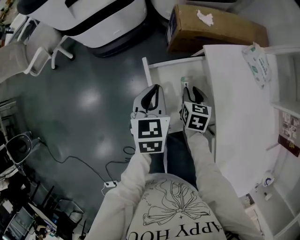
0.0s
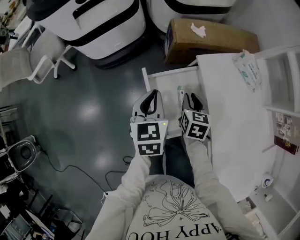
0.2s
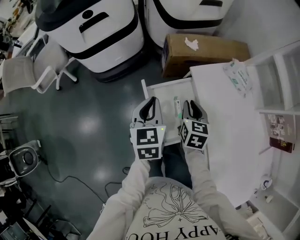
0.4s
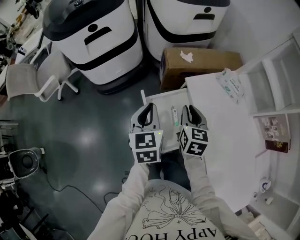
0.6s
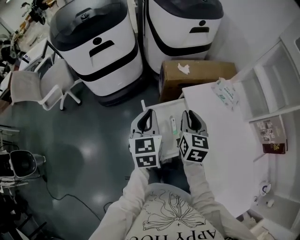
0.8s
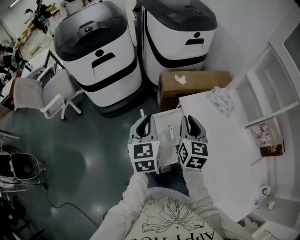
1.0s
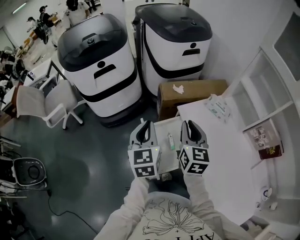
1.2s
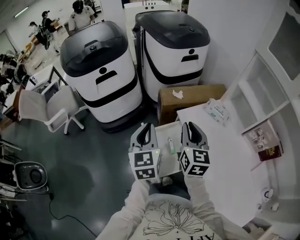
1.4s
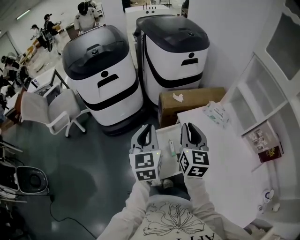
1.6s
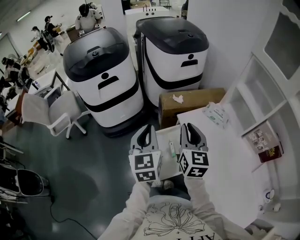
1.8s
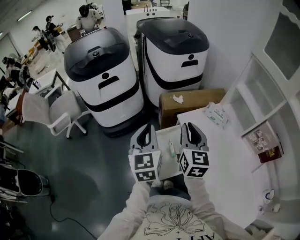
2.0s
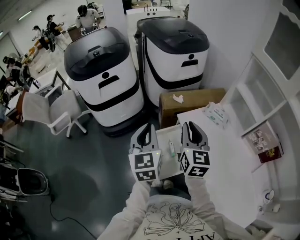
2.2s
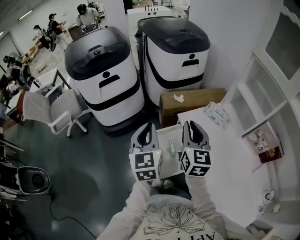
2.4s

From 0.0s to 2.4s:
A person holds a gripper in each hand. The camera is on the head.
From 0.0s to 1.2s: The left gripper moves upward, some 20 cm, and changes its angle by approximately 20 degrees; the right gripper heads upward, covering approximately 35 cm, and tips its fingers upward by approximately 40 degrees.
From 1.2s to 2.4s: The two grippers go approximately 5 cm upward.

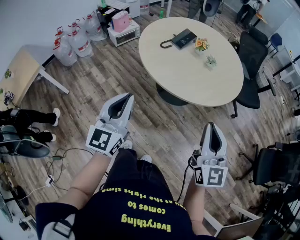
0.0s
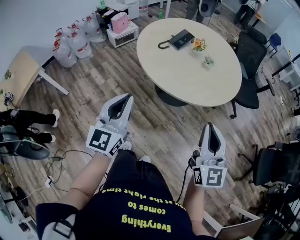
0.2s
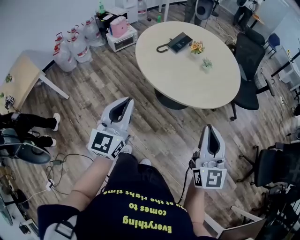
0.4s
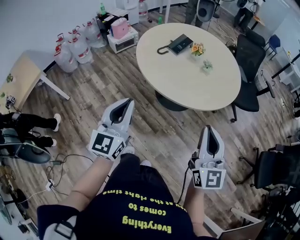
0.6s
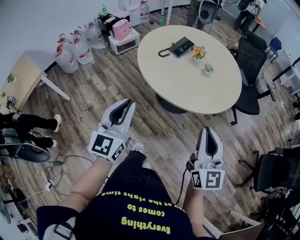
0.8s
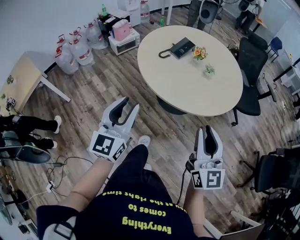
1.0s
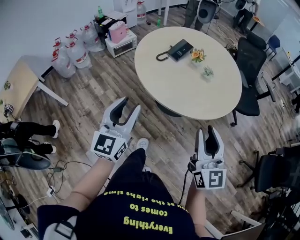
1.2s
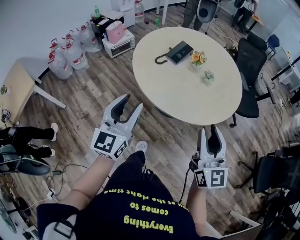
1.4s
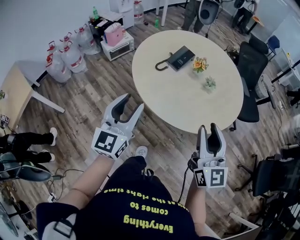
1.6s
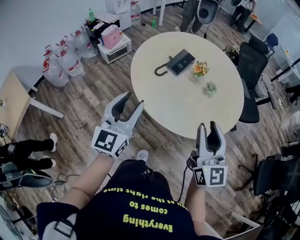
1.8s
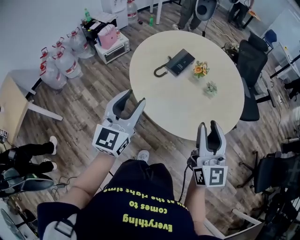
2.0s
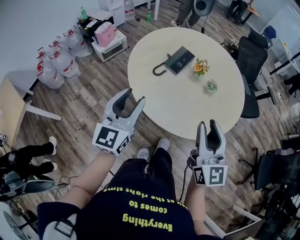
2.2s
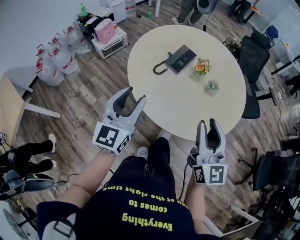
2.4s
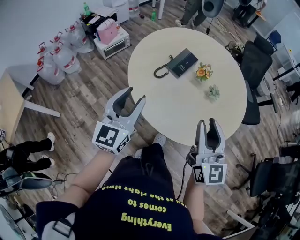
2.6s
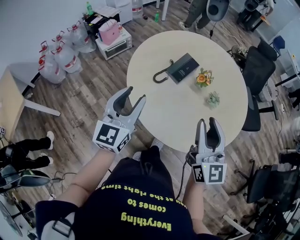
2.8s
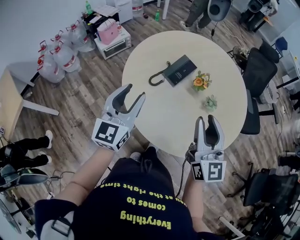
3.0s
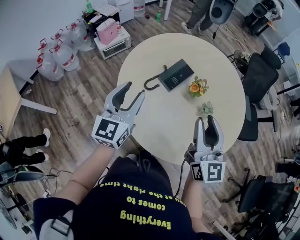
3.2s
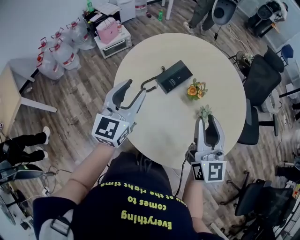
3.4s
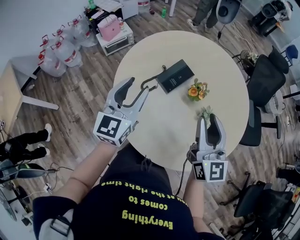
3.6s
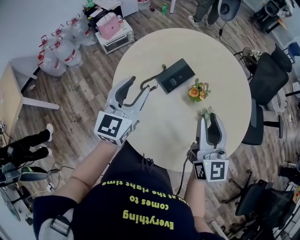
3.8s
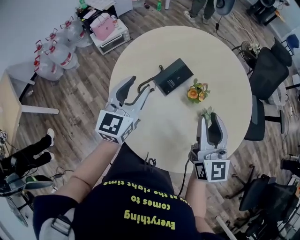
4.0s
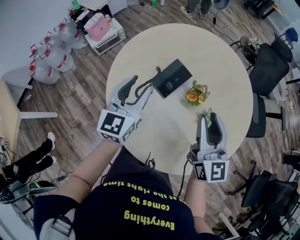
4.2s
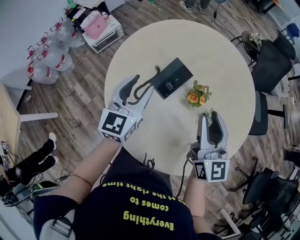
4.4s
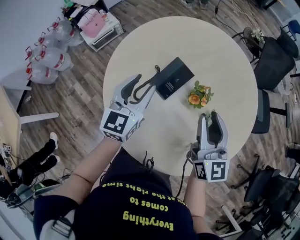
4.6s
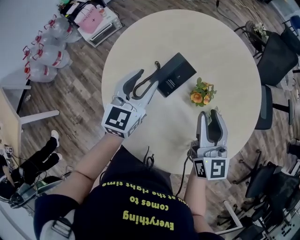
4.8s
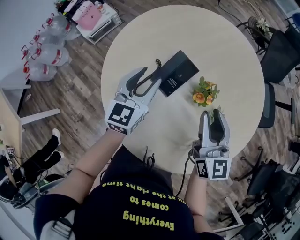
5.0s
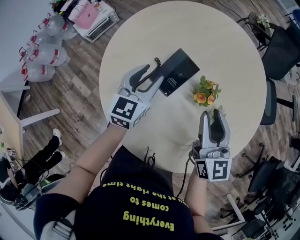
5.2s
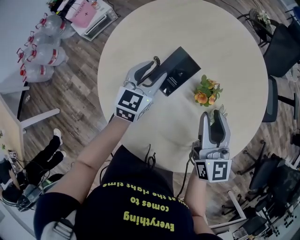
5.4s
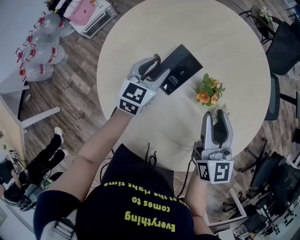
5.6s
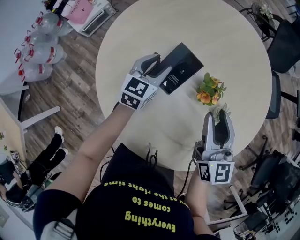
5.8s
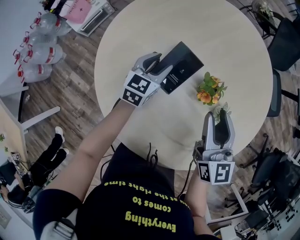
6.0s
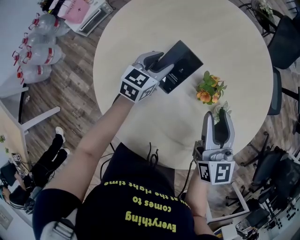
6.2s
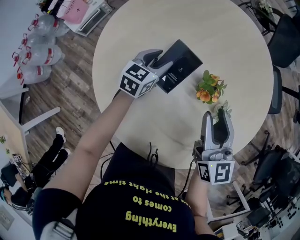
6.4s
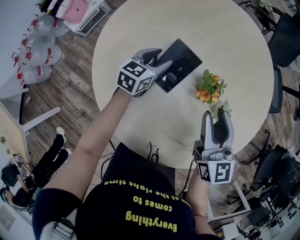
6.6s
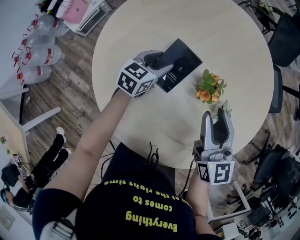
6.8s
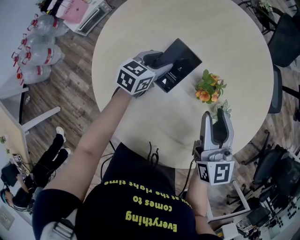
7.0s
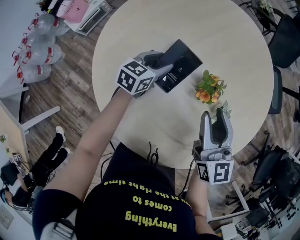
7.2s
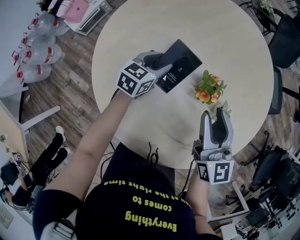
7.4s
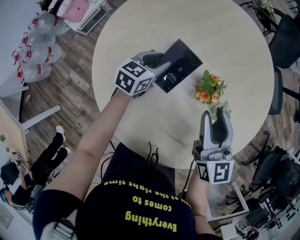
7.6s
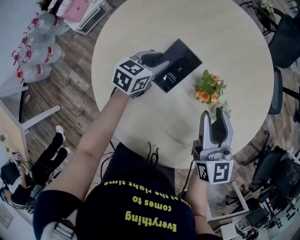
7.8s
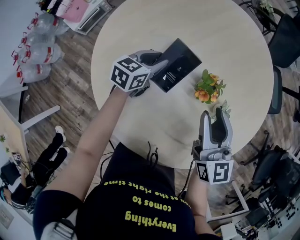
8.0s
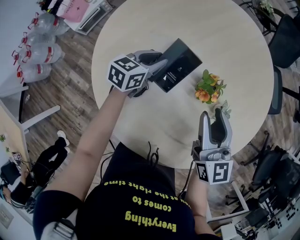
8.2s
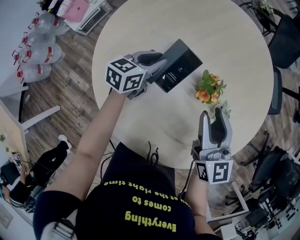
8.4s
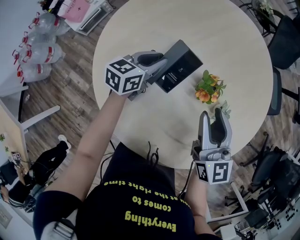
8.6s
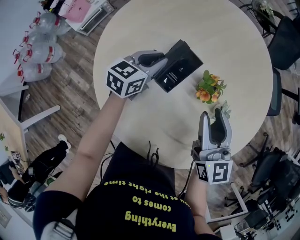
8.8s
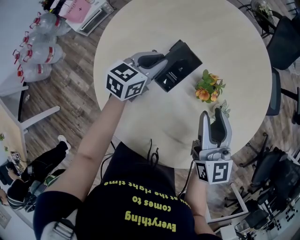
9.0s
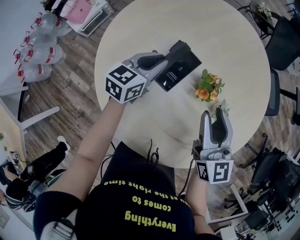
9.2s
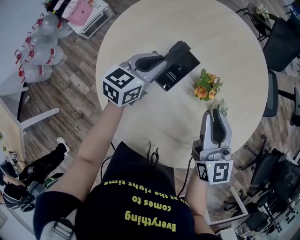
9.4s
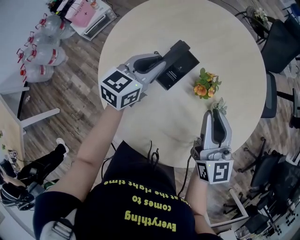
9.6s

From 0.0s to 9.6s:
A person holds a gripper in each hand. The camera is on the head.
From 0.0s to 1.6s: Both grippers move forward, about 20 cm. The left gripper opens its fingers. The right gripper opens.
From 1.6s to 3.2s: The two grippers go about 25 cm forward.
From 3.2s to 4.8s: Both grippers travel together forward and downward, roughly 20 cm.
From 4.8s to 6.4s: The right gripper changes place by approximately 5 cm. Meanwhile the left gripper moves downward and forward, roughly 20 cm, and changes its angle by roughly 30 degrees.
From 6.4s to 8.0s: The grippers move only a little.
From 8.0s to 9.6s: The left gripper heads upward, covering roughly 15 cm. Meanwhile the right gripper shifts by about 5 cm, and closes.

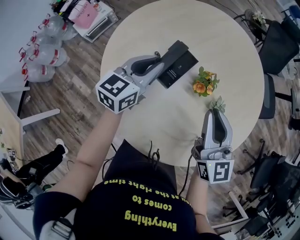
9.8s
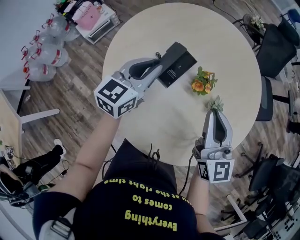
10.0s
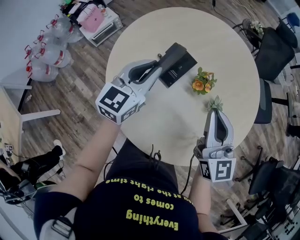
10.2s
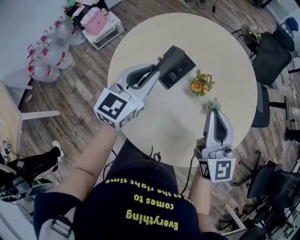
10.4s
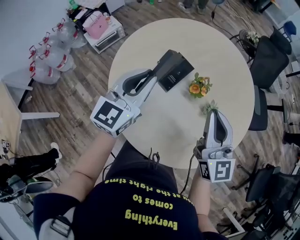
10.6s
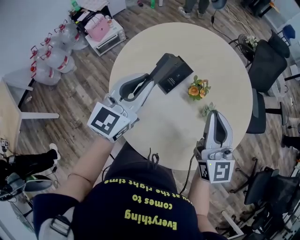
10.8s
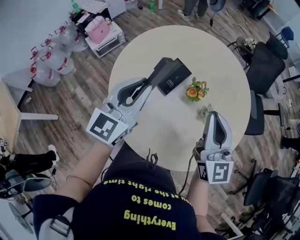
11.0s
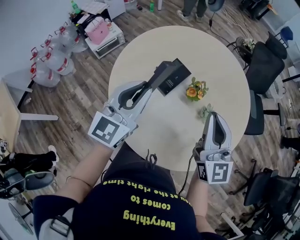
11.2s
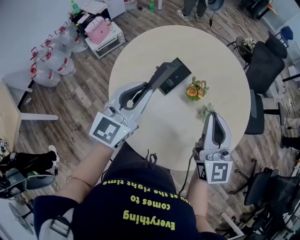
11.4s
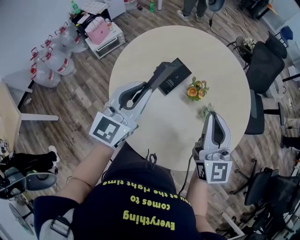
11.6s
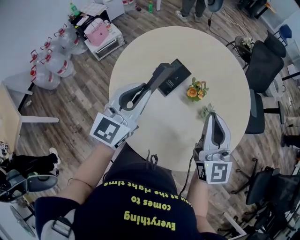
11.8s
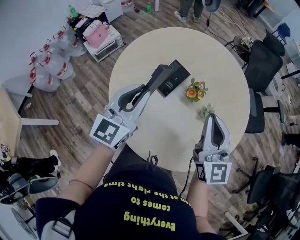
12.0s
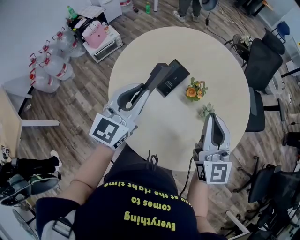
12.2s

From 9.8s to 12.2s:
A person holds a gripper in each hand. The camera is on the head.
From 9.8s to 11.0s: The right gripper is displaced upward and backward by about 10 cm; the left gripper heads upward and backward, covering approximately 20 cm, and changes its angle by about 30 degrees.
From 11.0s to 12.2s: The grippers make only small movements.

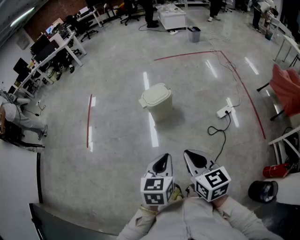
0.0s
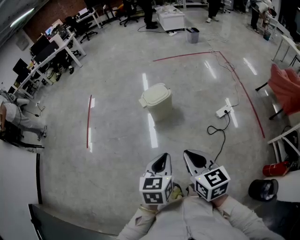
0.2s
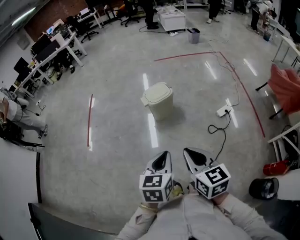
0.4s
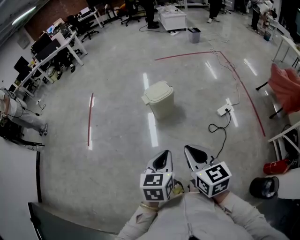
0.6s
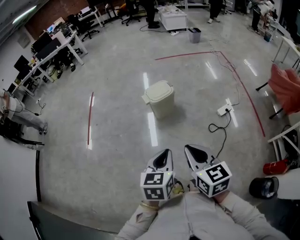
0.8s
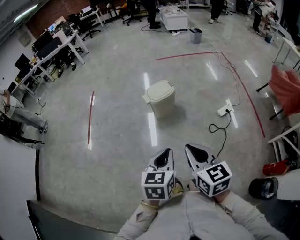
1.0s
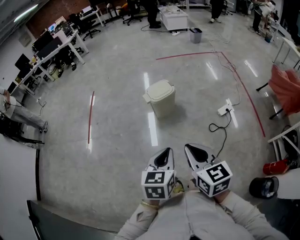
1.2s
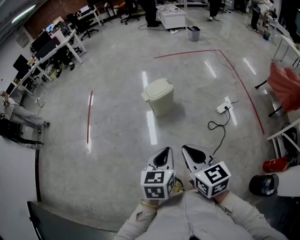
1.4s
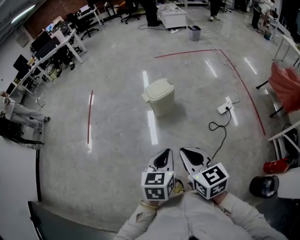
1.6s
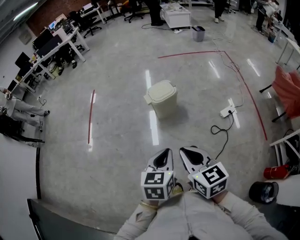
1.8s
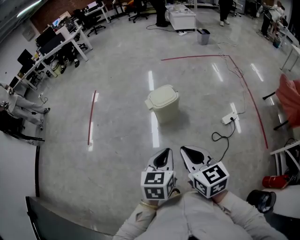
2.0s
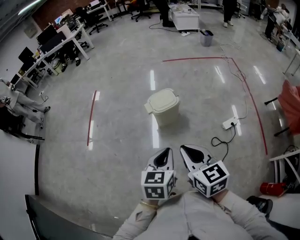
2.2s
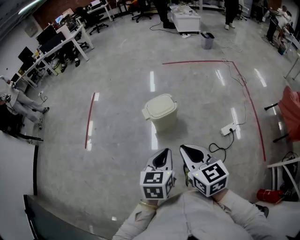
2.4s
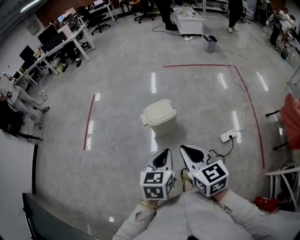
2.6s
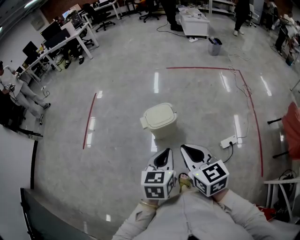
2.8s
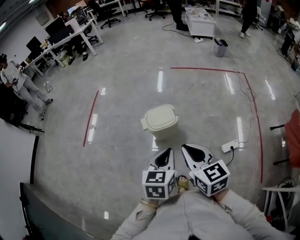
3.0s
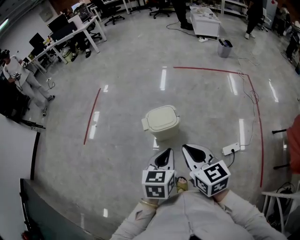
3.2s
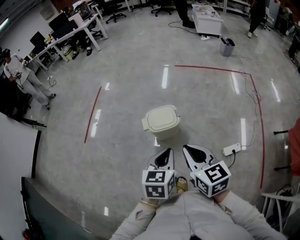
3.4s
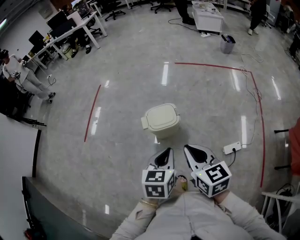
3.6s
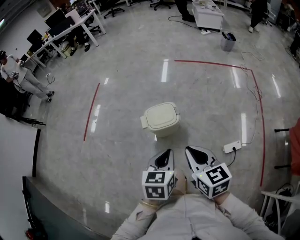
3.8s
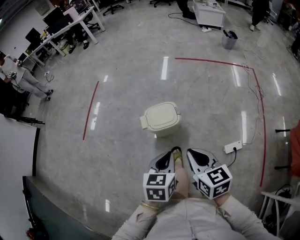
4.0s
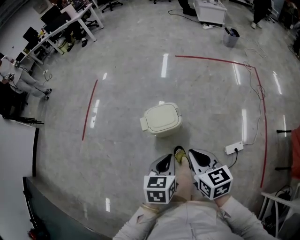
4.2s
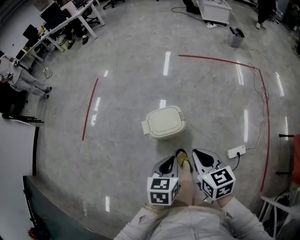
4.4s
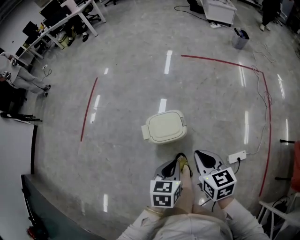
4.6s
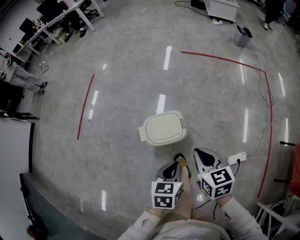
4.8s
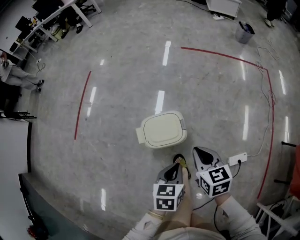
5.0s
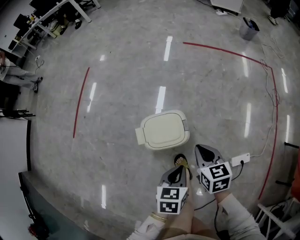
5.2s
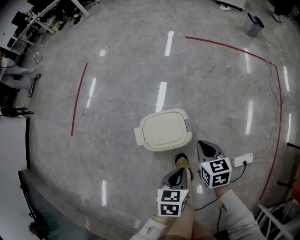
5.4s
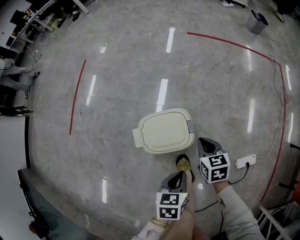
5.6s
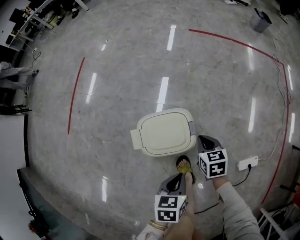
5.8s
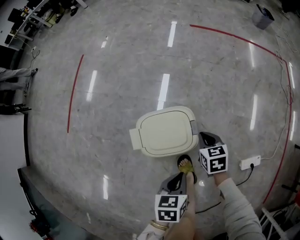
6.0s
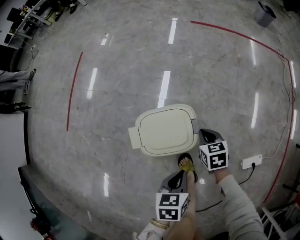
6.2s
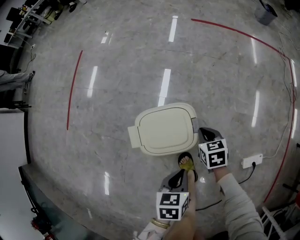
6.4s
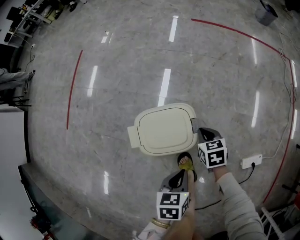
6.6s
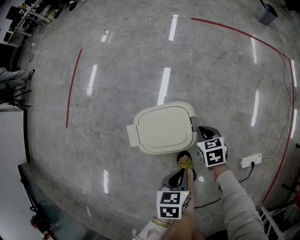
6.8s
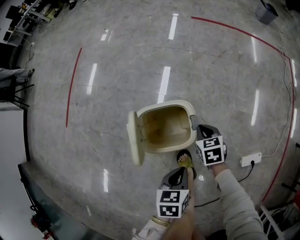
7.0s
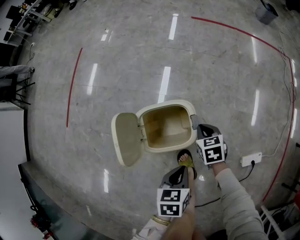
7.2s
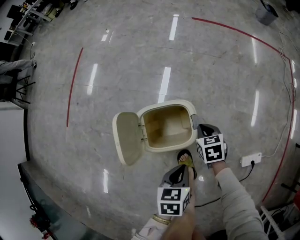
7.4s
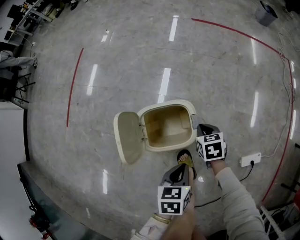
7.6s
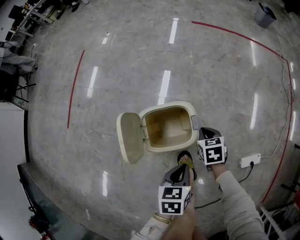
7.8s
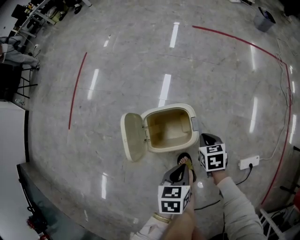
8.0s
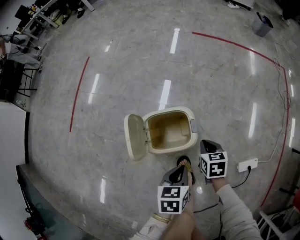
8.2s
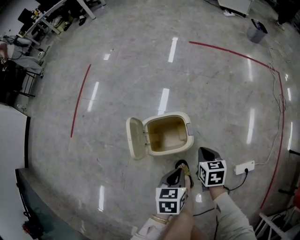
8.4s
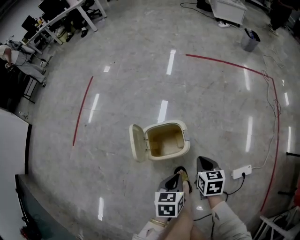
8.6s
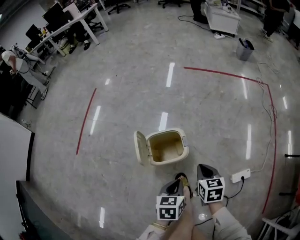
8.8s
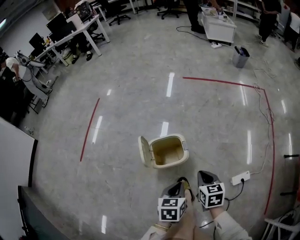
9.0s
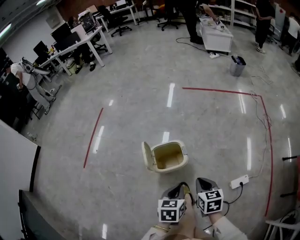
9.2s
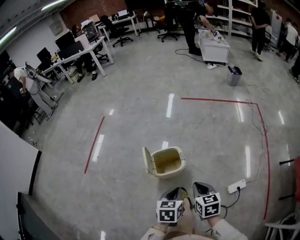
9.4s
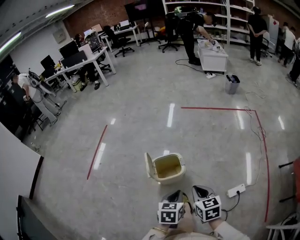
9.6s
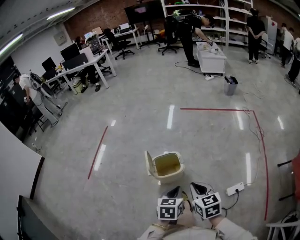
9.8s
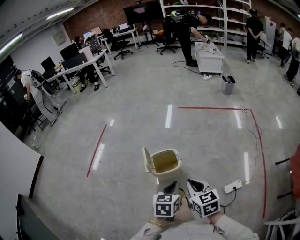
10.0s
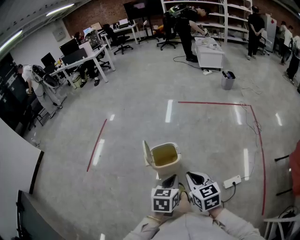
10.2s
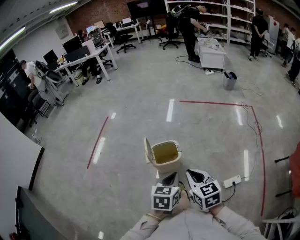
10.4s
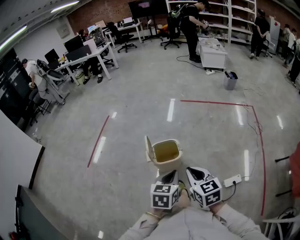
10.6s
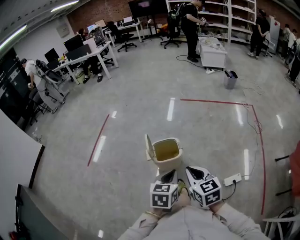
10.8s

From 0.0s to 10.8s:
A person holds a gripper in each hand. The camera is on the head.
From 0.0s to 1.6s: The right gripper heads to the left, covering roughly 5 cm.
From 1.6s to 3.0s: Both grippers travel together forward and to the right, some 35 cm.
From 3.0s to 4.6s: Both grippers travel together forward and downward, some 20 cm.
From 4.6s to 6.2s: The right gripper is displaced downward and forward by approximately 40 cm, and changes its angle by roughly 20 degrees; the left gripper travels downward by roughly 25 cm.
From 6.2s to 7.8s: The grippers stay close to where they were, moving slightly.
From 7.8s to 9.2s: The right gripper shifts approximately 35 cm upward and backward, and turns by approximately 20 degrees. Meanwhile the left gripper travels upward and backward by about 20 cm.
From 9.2s to 10.8s: Both grippers travel together upward and backward, approximately 20 cm. The right gripper swivels roughly 20 degrees.
